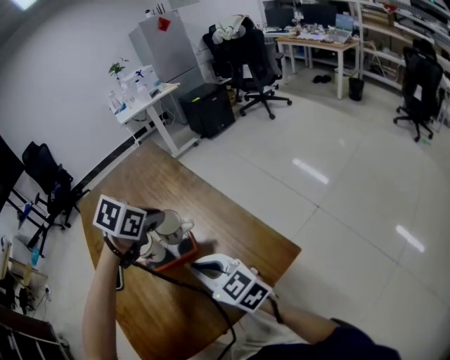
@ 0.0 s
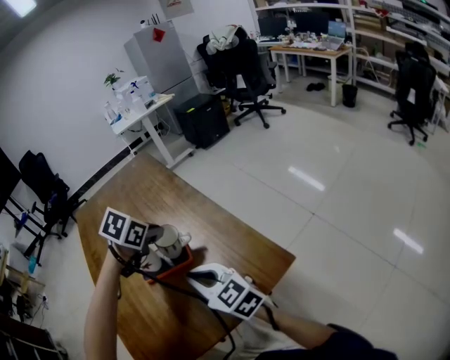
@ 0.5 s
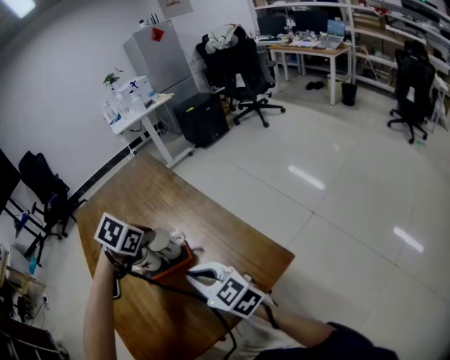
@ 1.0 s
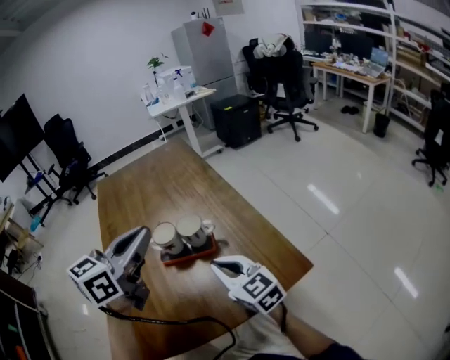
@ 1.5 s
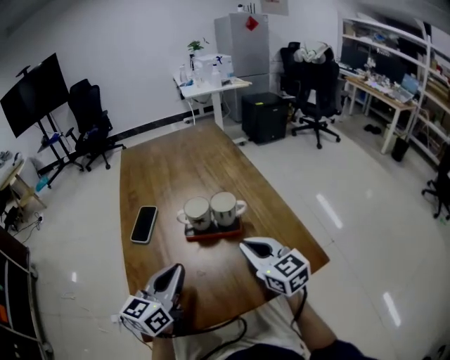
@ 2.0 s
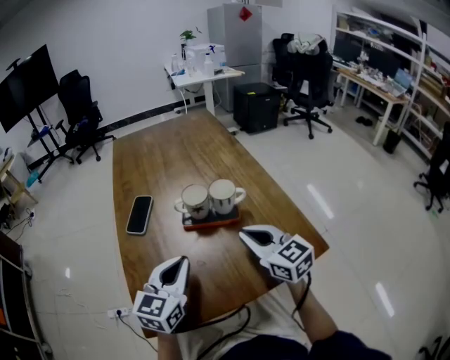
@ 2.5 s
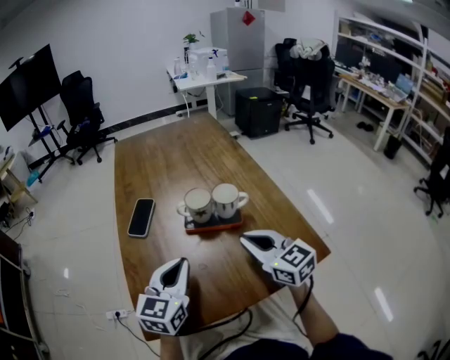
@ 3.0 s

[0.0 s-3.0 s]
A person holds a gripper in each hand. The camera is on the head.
0.0 to 1.5 s: The left gripper shifts approximately 20 cm backward, upward and to the left, and points its fingers approximately 50 degrees further upward.
1.5 to 3.0 s: The left gripper is displaced downward, backward and to the left by some 20 cm, and turns by roughly 20 degrees.

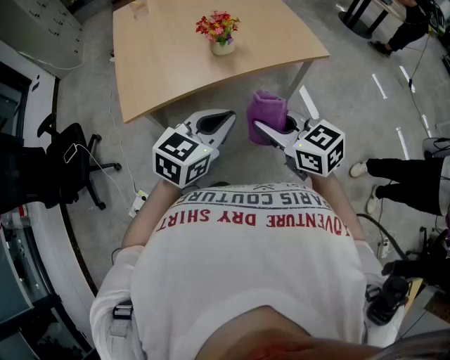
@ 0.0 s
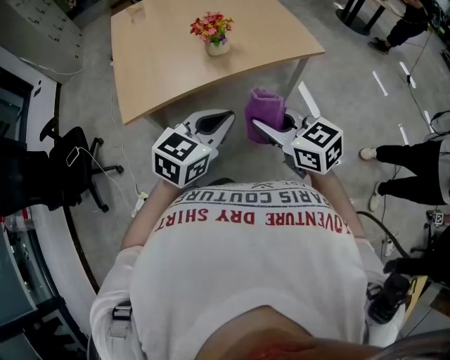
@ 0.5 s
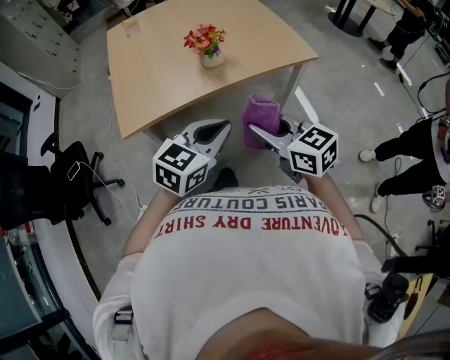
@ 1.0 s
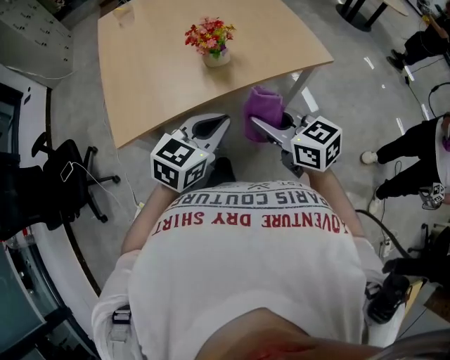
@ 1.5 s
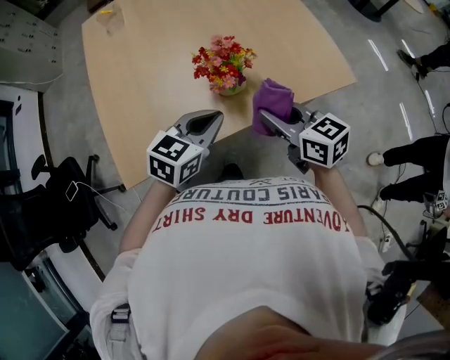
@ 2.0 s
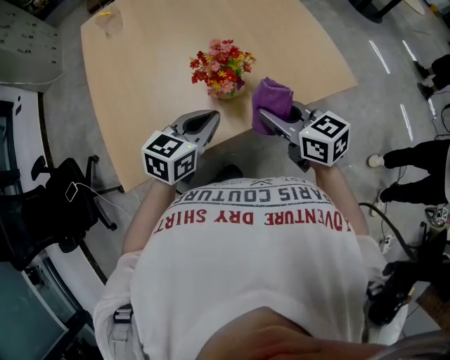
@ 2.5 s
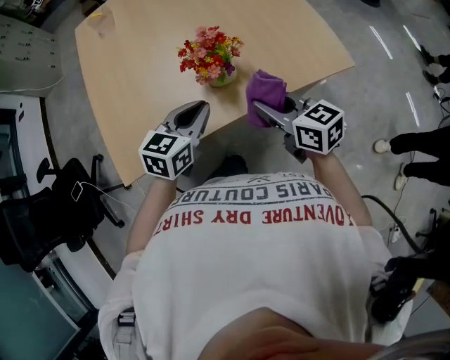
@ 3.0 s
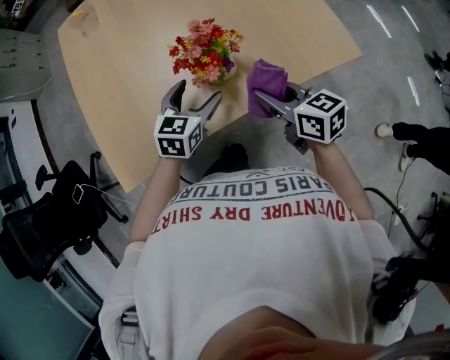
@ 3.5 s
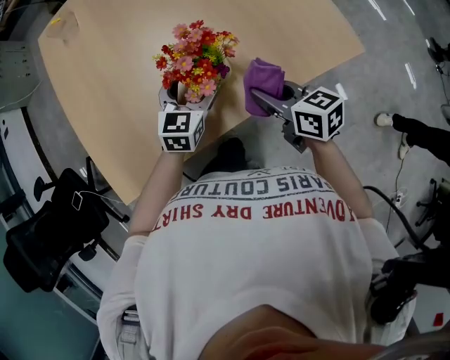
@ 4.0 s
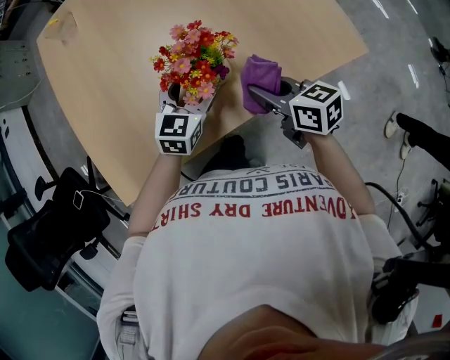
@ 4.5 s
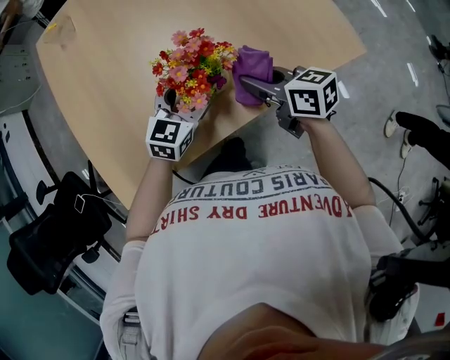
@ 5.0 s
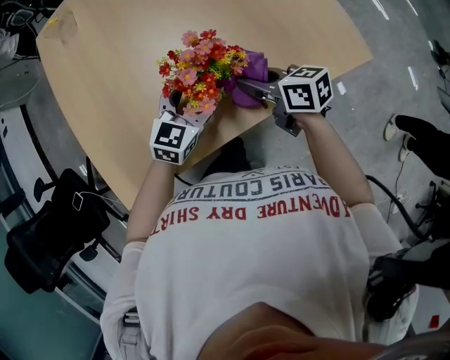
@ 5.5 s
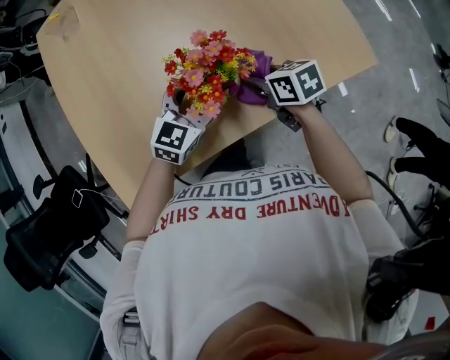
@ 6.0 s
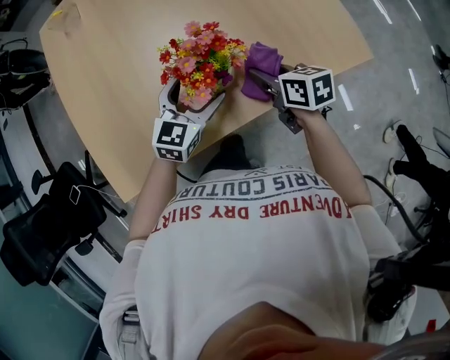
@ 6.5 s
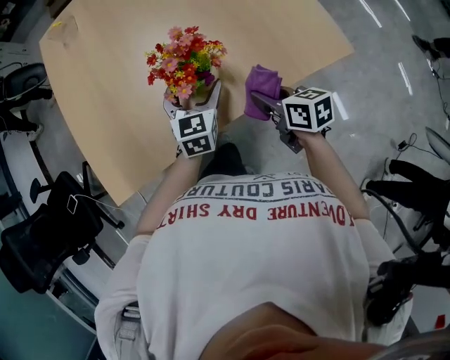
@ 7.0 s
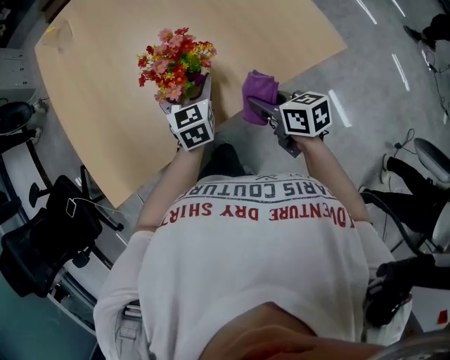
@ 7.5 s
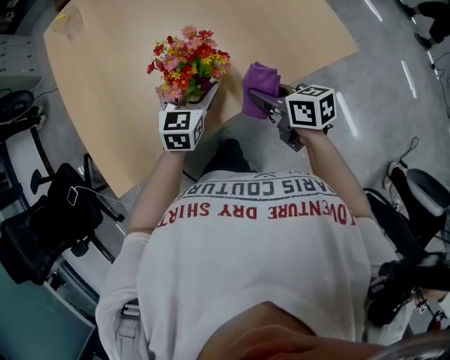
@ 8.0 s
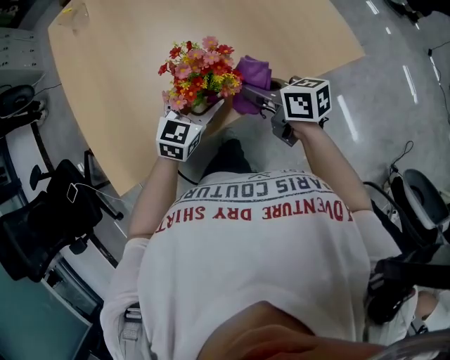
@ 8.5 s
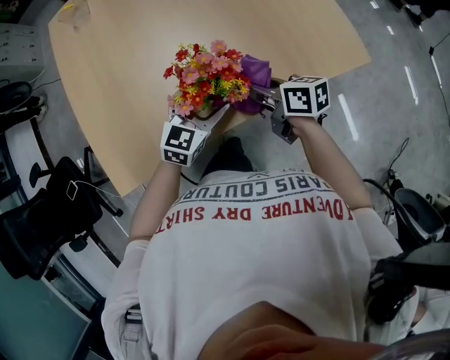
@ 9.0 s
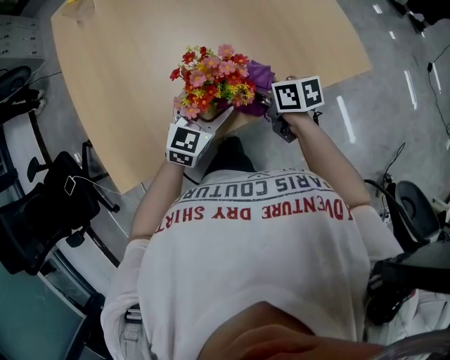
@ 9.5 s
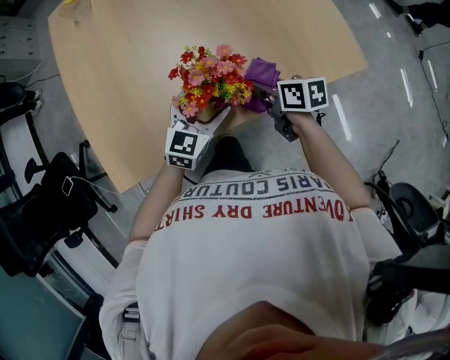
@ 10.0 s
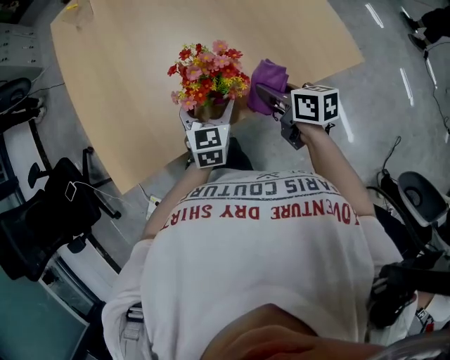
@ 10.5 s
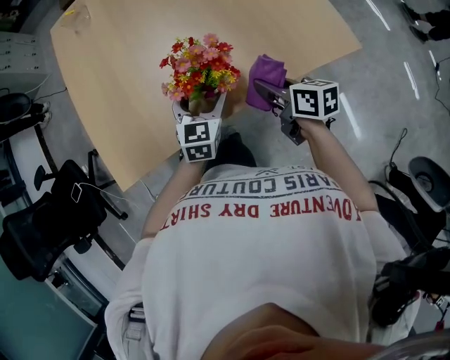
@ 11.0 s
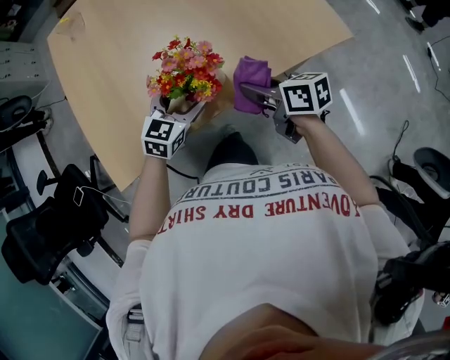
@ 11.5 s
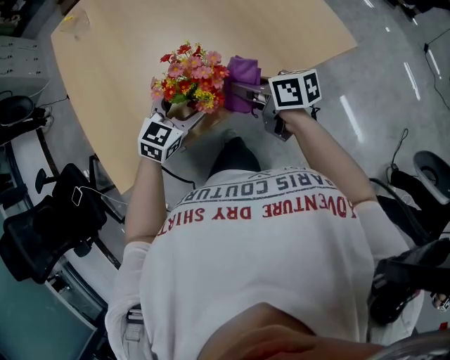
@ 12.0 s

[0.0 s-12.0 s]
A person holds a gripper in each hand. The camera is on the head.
0.0 to 2.0 s: Both grippers move forward, roughly 35 cm.
2.0 to 4.0 s: The left gripper travels forward and downward by roughly 20 cm, and opens up. The right gripper travels downward and forward by about 15 cm.
4.0 to 6.0 s: The right gripper heads forward and downward, covering approximately 10 cm.
6.0 to 8.0 s: The right gripper is displaced backward and upward by roughly 10 cm.
8.0 to 10.0 s: The right gripper moves forward, approximately 5 cm.
10.0 to 12.0 s: The right gripper travels upward by some 5 cm.

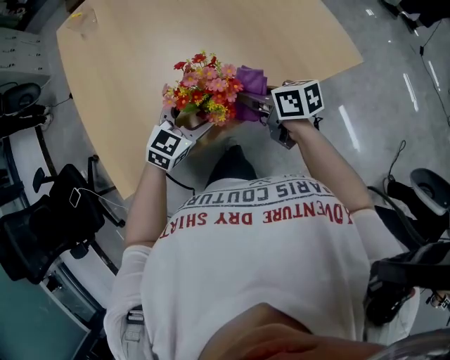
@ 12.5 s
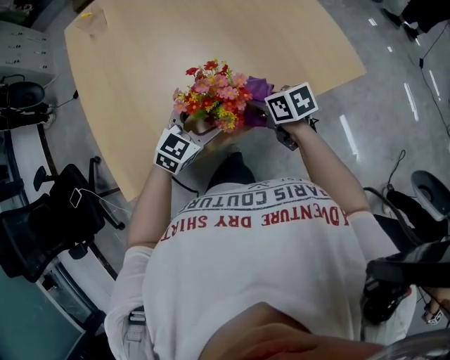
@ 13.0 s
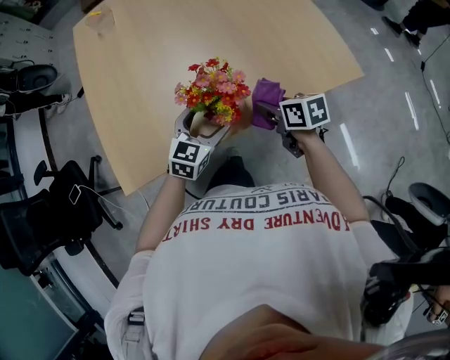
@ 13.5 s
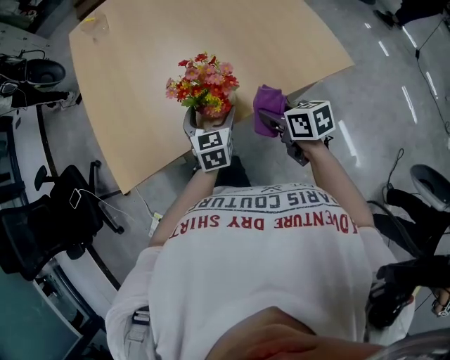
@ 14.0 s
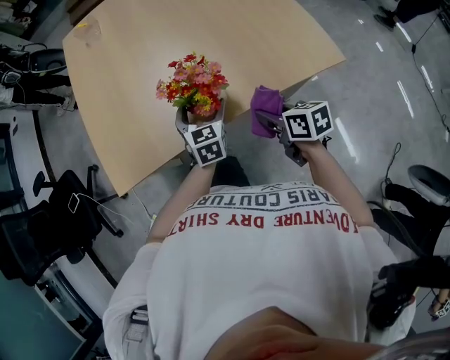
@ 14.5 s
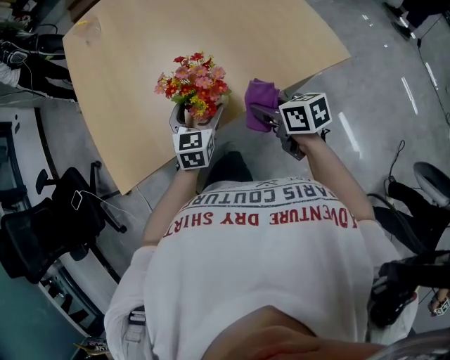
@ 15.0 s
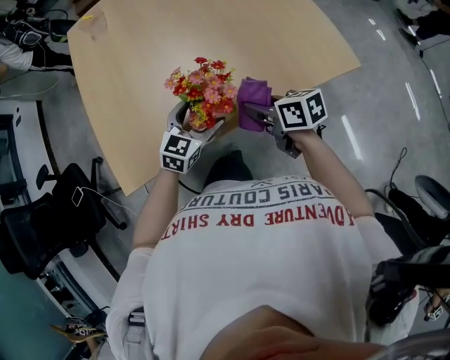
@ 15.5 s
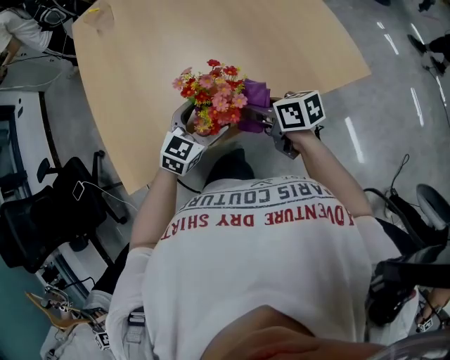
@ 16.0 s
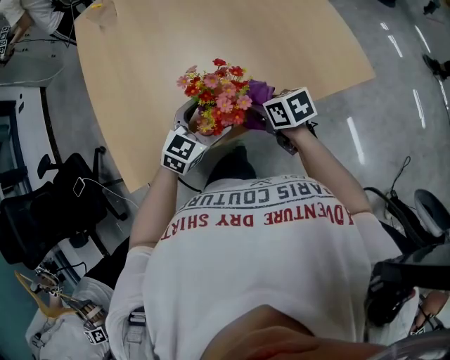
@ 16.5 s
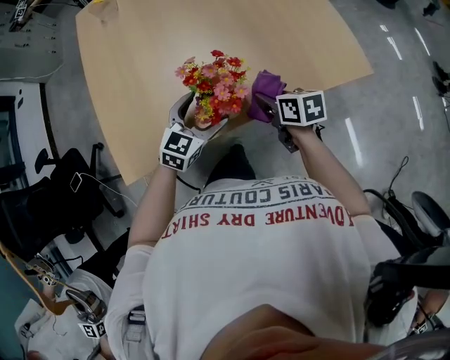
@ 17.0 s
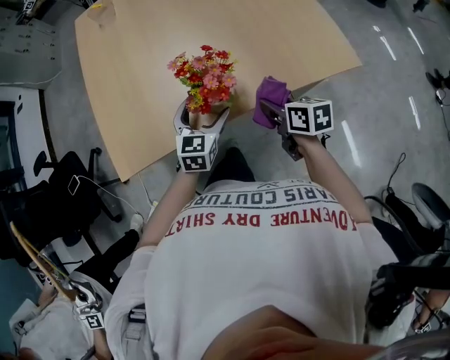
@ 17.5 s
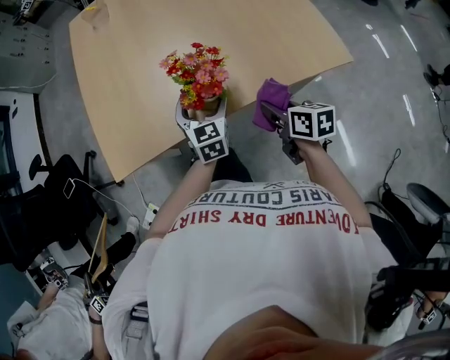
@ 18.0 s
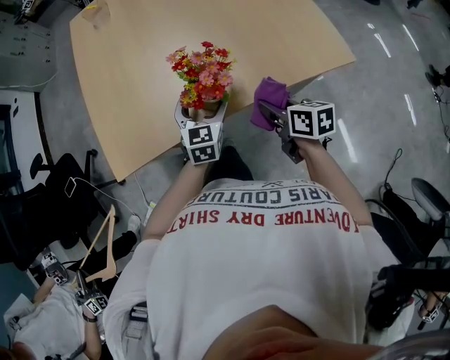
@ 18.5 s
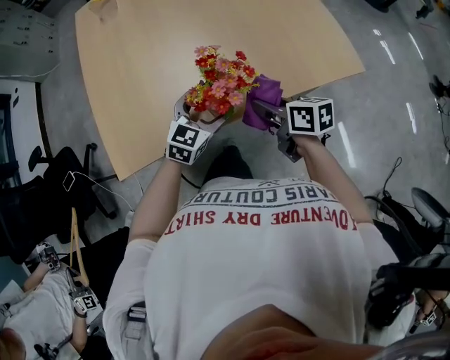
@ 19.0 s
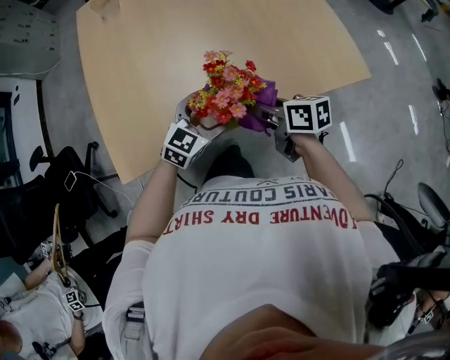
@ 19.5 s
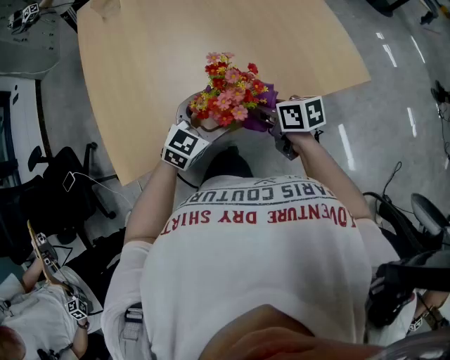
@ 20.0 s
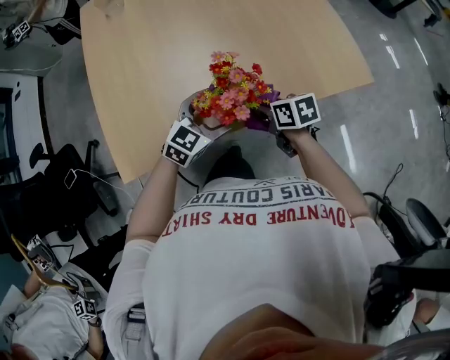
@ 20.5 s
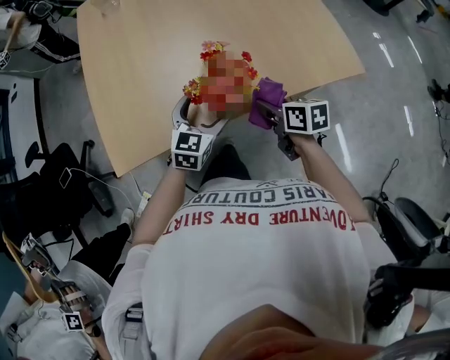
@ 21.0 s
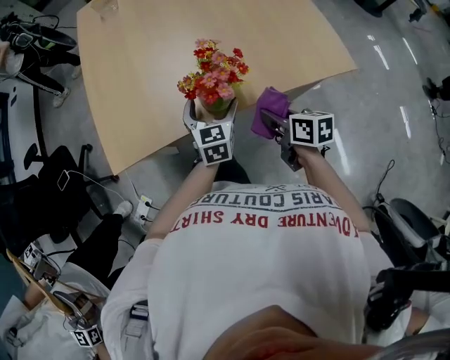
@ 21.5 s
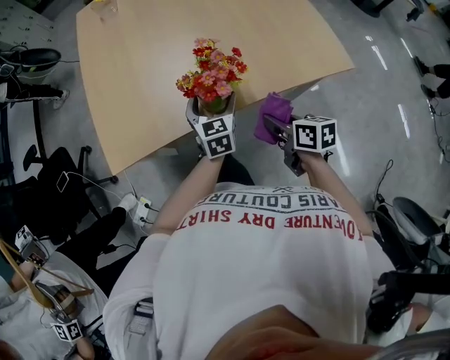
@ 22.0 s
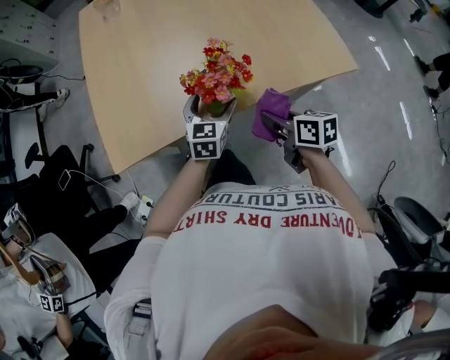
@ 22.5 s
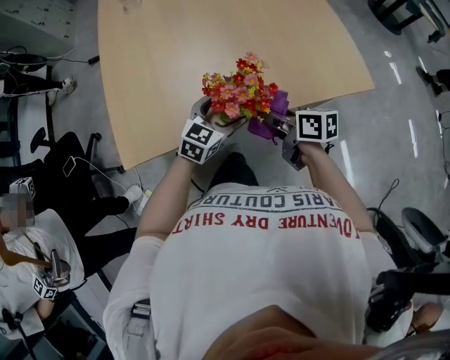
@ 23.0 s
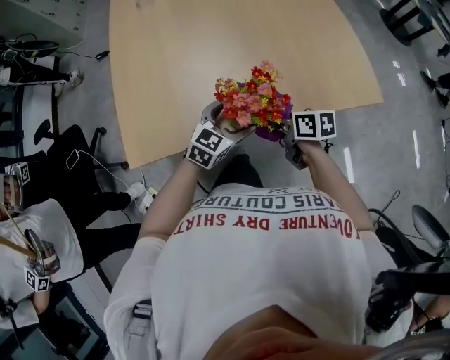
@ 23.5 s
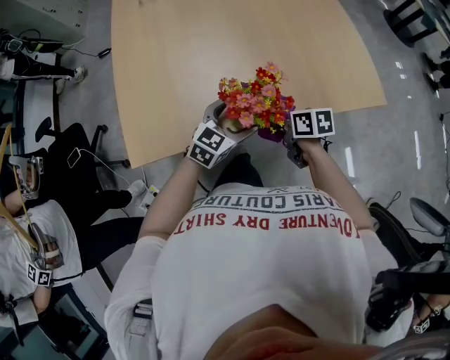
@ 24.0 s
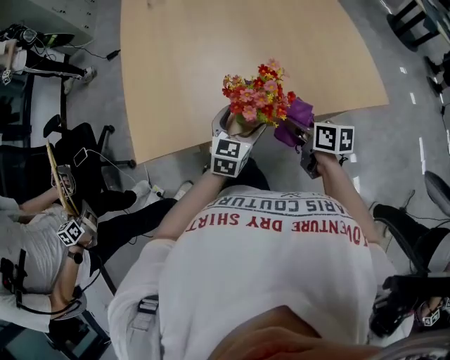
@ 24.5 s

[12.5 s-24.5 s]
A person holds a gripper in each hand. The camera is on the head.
12.5 to 14.5 s: The right gripper travels backward by approximately 10 cm. The left gripper swivels some 50 degrees.
14.5 to 16.5 s: The right gripper is displaced forward and to the left by roughly 15 cm. Meanwhile the left gripper turns by some 40 degrees.
16.5 to 18.5 s: The left gripper turns by roughly 30 degrees. Meanwhile the right gripper heads backward and to the right, covering approximately 10 cm.
18.5 to 20.5 s: The left gripper turns by roughly 40 degrees. The right gripper goes some 10 cm forward and downward.
20.5 to 22.5 s: The right gripper travels backward and upward by some 10 cm. The left gripper rotates approximately 30 degrees.
